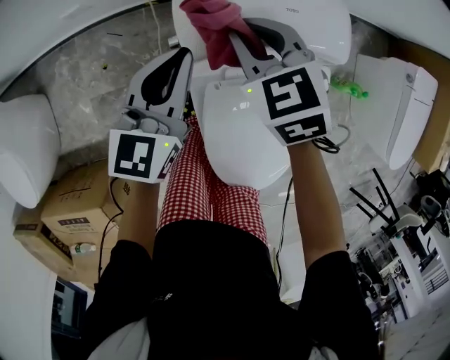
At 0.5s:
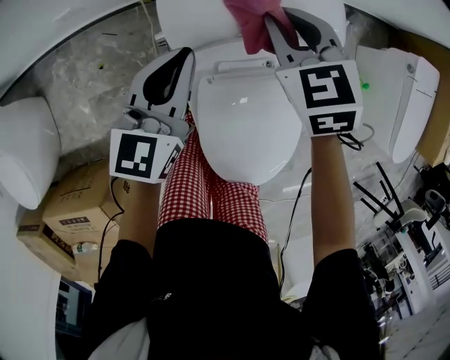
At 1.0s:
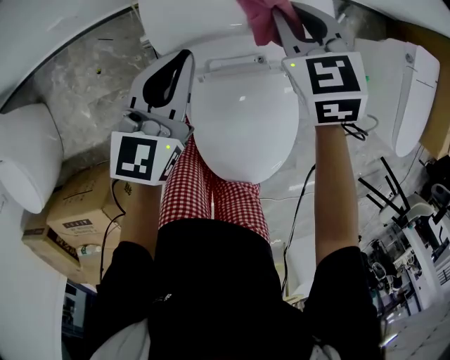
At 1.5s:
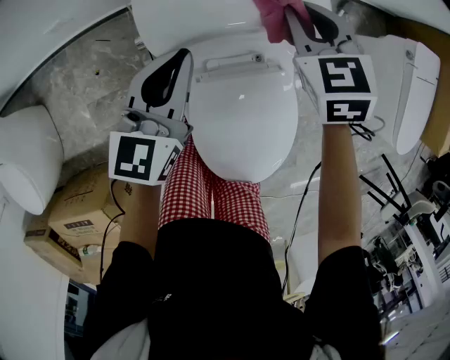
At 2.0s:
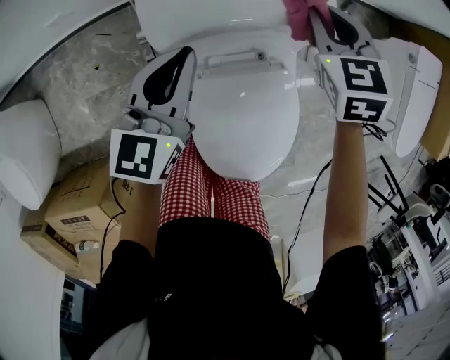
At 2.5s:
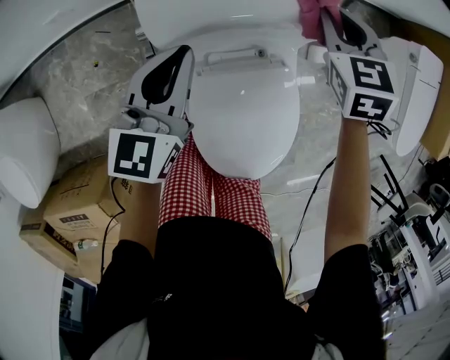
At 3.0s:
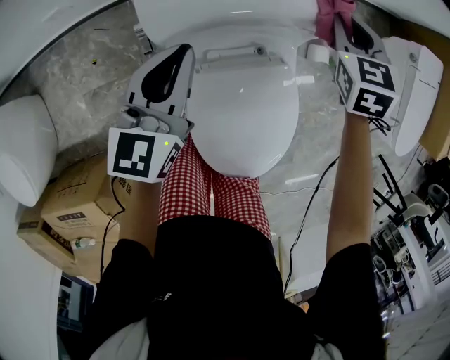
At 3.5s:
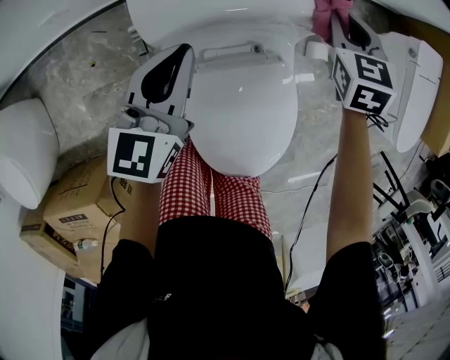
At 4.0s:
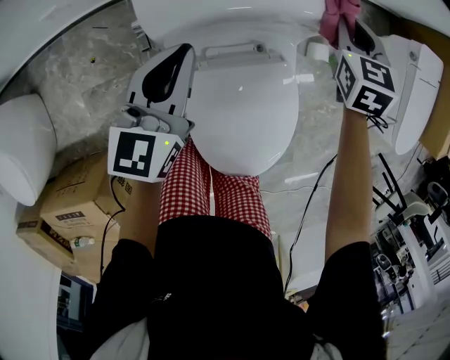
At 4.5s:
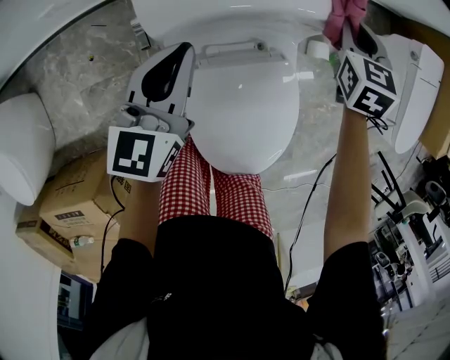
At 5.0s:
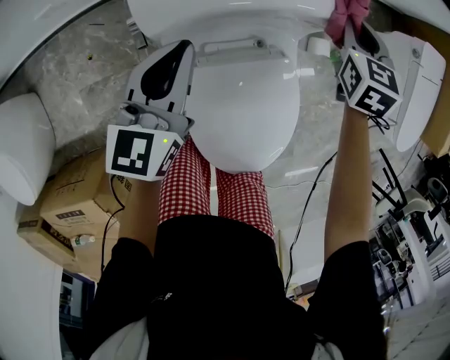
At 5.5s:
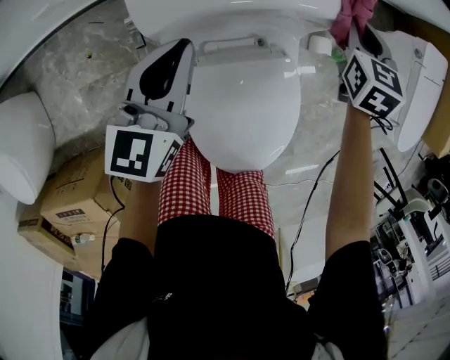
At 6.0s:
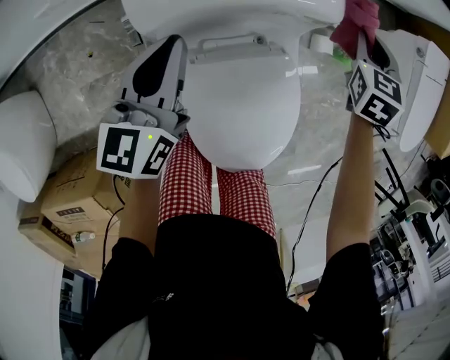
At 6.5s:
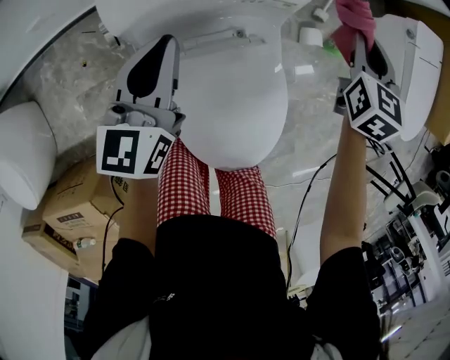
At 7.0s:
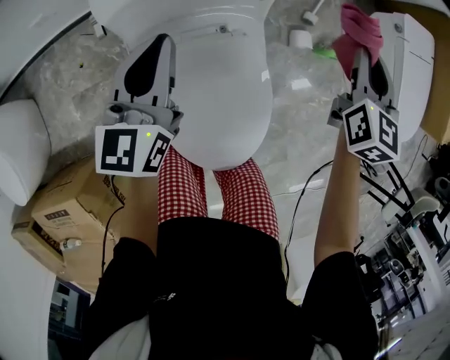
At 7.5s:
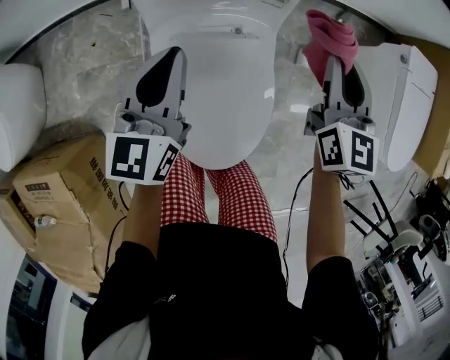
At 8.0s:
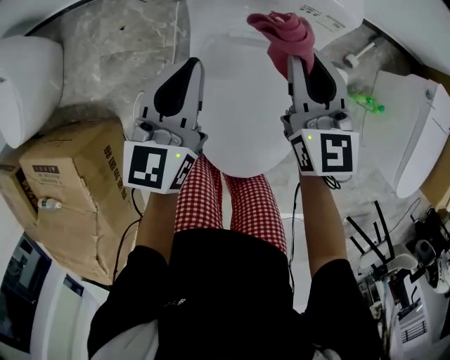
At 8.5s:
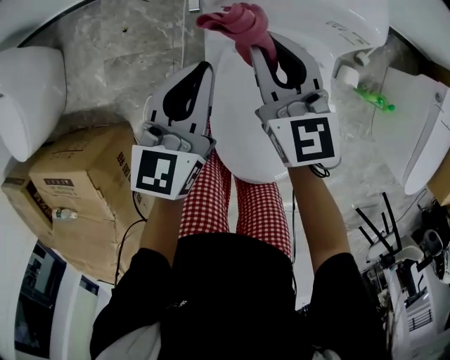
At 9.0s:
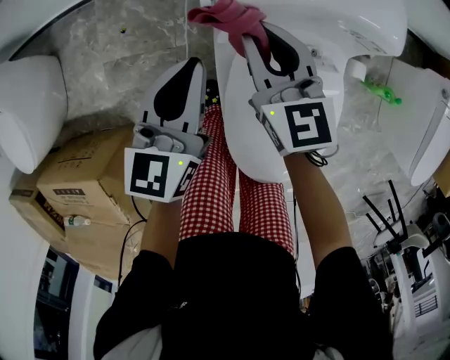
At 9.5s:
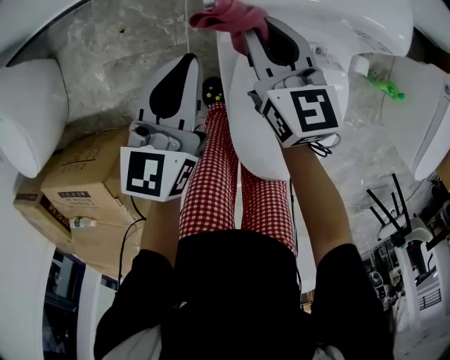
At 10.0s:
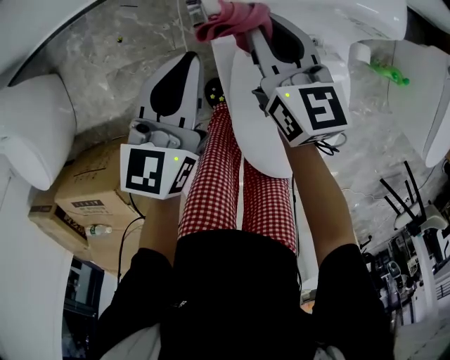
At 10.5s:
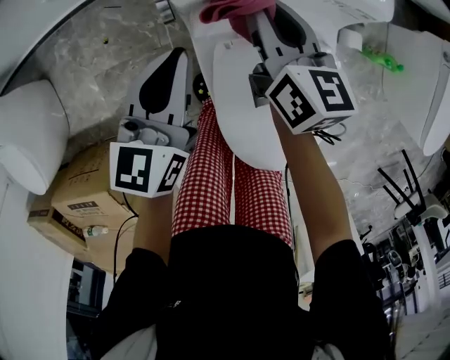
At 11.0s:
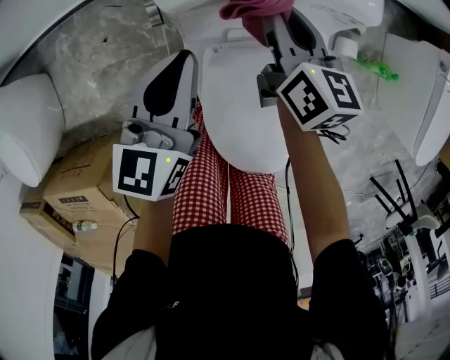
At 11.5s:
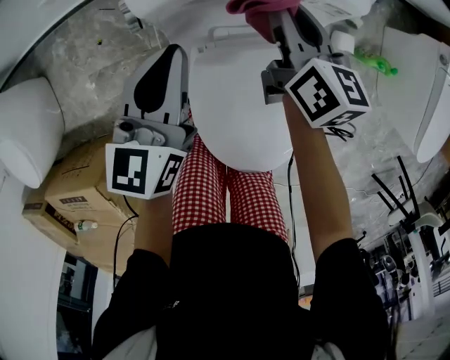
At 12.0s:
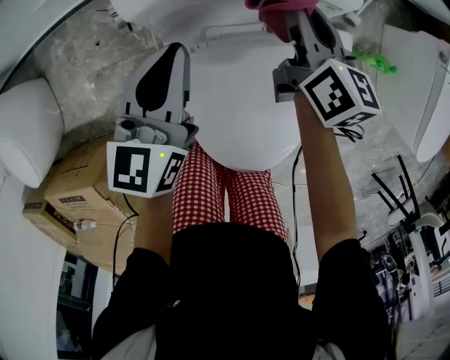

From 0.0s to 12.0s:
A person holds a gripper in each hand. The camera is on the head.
From 0.0s to 2.0s: The right gripper goes about 20 cm to the right. Meanwhile the left gripper goes roughly 5 cm to the right.
From 2.0s to 4.0s: The right gripper goes approximately 10 cm to the right.
From 4.0s to 6.0s: The right gripper is displaced to the right by roughly 10 cm.
From 6.0s to 8.0s: The right gripper shifts by approximately 25 cm, and changes its angle by some 50 degrees. Meanwhile the left gripper moves approximately 15 cm.
From 8.0s to 10.0s: The right gripper goes some 20 cm to the left, forward and downward, while the left gripper goes about 15 cm forward, to the left and downward.
From 10.0s to 12.0s: The right gripper heads to the right, covering about 20 cm, and changes its angle by roughly 20 degrees. Meanwhile the left gripper travels to the right by about 10 cm.

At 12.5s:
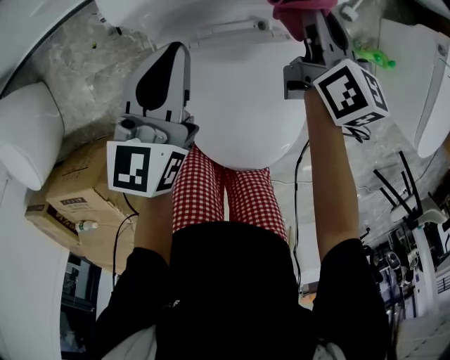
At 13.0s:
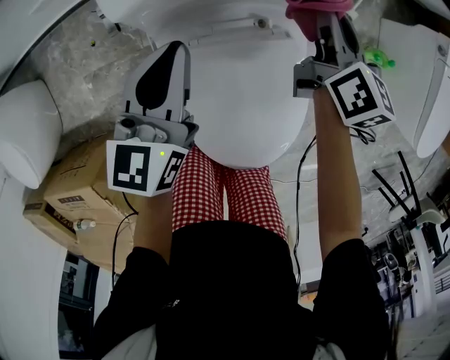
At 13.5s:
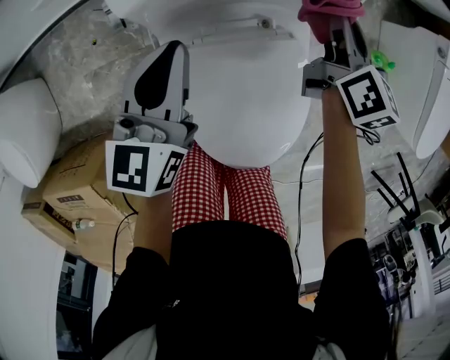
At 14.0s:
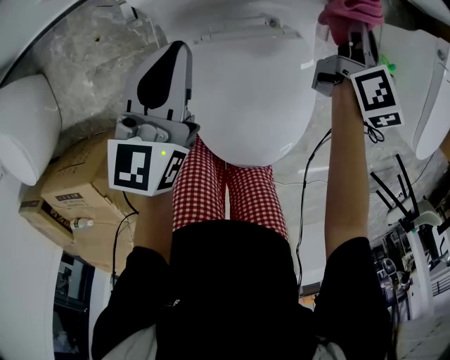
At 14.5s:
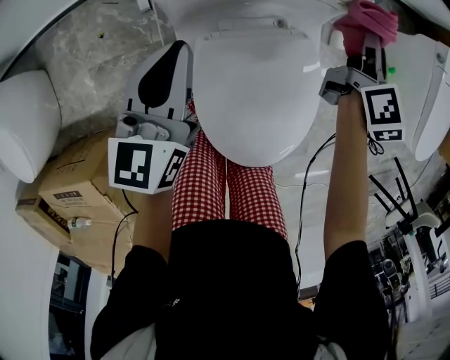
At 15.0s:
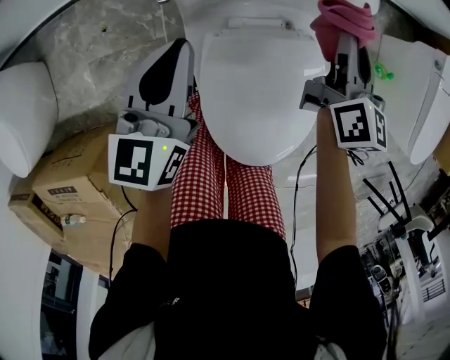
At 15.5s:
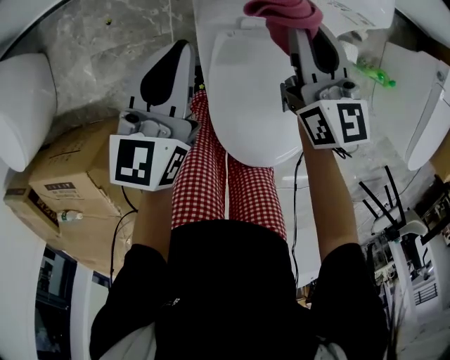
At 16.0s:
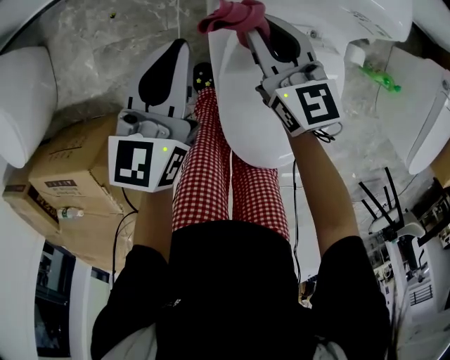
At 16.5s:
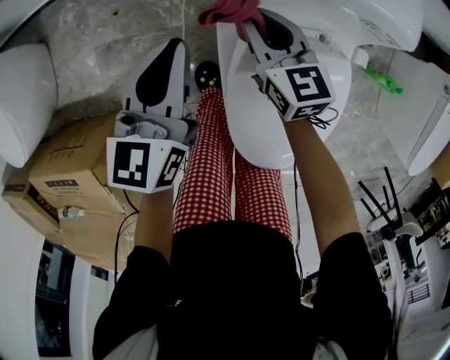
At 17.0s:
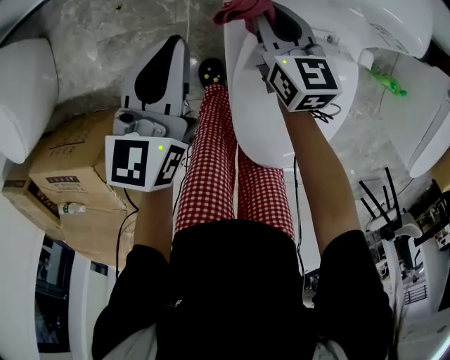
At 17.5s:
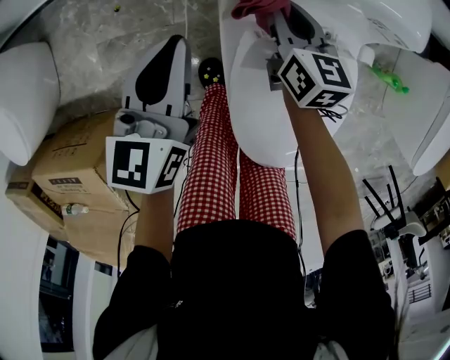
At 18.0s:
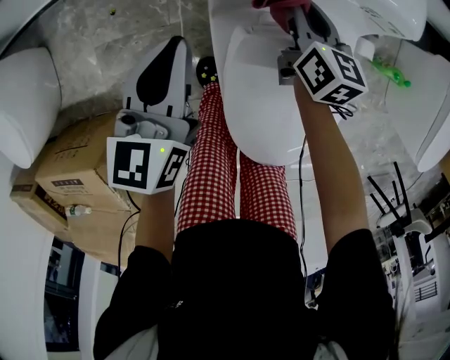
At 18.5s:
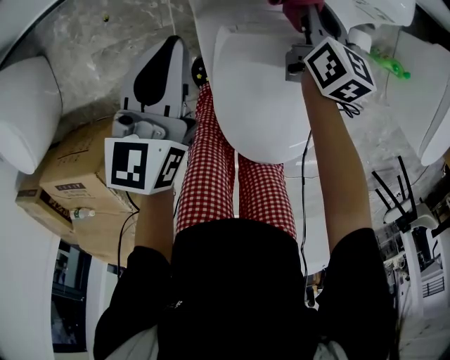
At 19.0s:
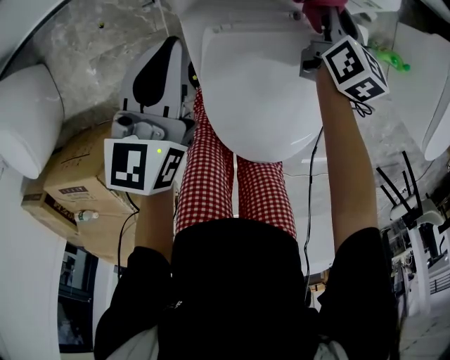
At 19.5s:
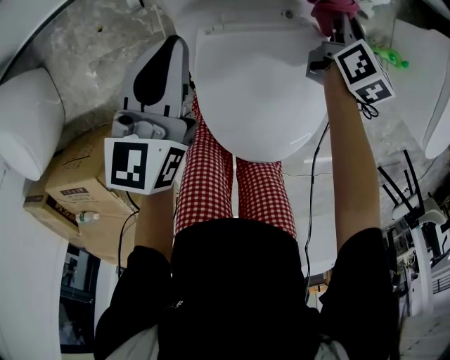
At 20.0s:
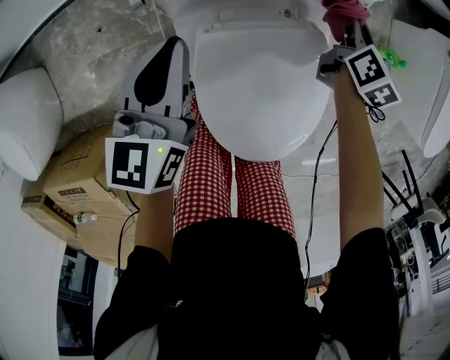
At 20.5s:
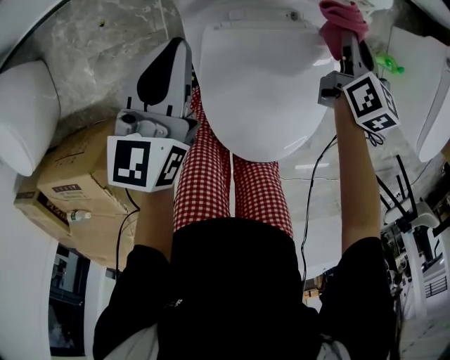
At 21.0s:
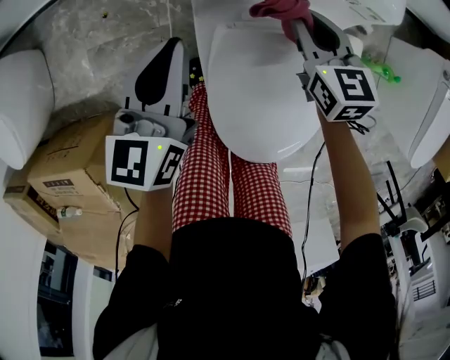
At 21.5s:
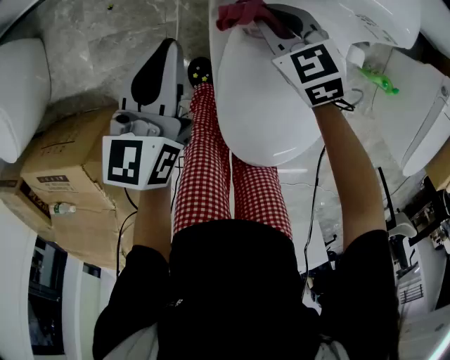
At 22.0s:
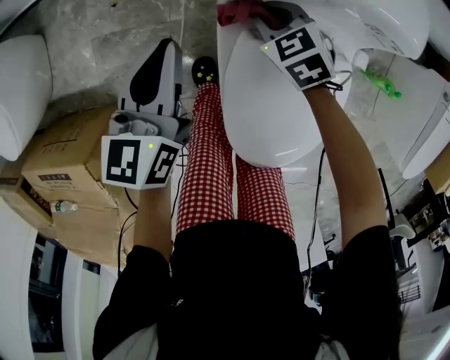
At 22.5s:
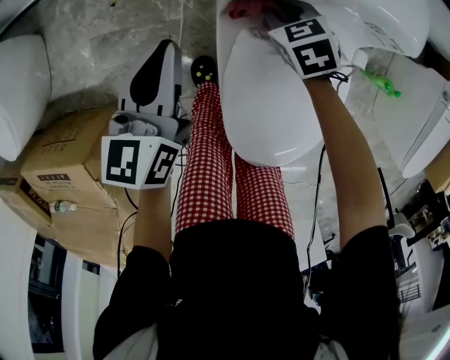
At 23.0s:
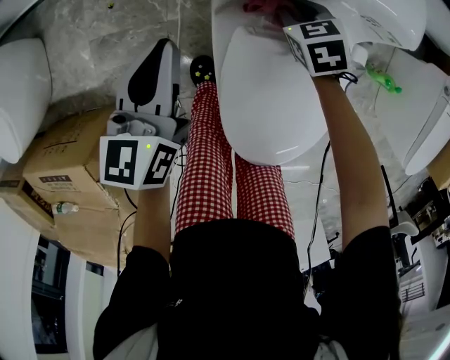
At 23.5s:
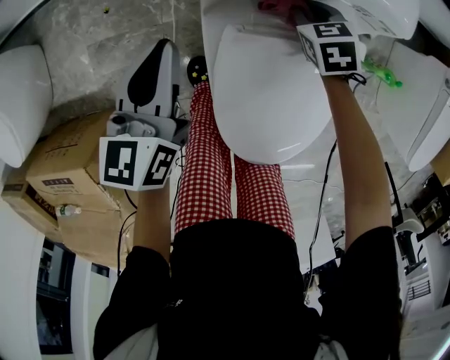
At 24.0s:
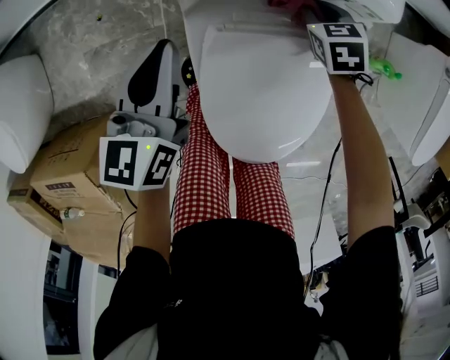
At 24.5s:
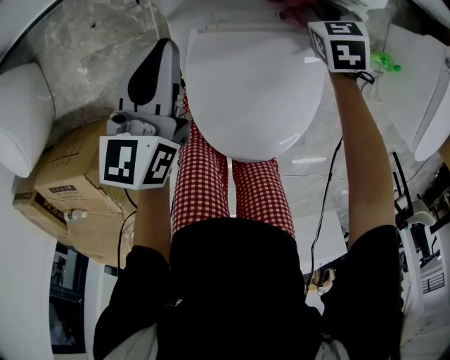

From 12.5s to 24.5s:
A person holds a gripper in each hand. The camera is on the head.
From 12.5s to 14.5s: The right gripper goes approximately 10 cm to the right, and turns by roughly 20 degrees, while the left gripper ends up approximately 5 cm from where it was.
From 14.5s to 16.5s: The right gripper ends up some 35 cm from where it was, and changes its angle by about 60 degrees; the left gripper shifts by roughly 10 cm.
From 16.5s to 18.5s: The right gripper heads to the right, covering roughly 20 cm, and rotates about 30 degrees; the left gripper shifts approximately 5 cm to the right.
From 18.5s to 20.5s: The right gripper moves to the right, about 15 cm.
From 20.5s to 22.5s: The right gripper shifts by some 25 cm, and turns by some 70 degrees. The left gripper changes place by about 10 cm.
From 22.5s to 24.5s: The right gripper goes approximately 20 cm to the right. Meanwhile the left gripper heads to the right, covering some 10 cm.

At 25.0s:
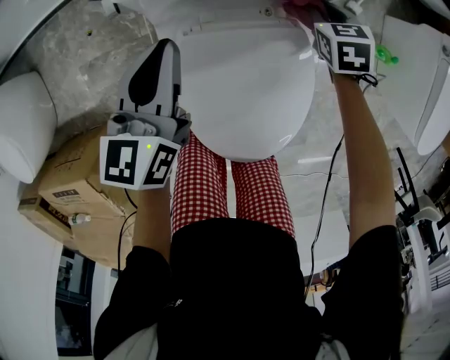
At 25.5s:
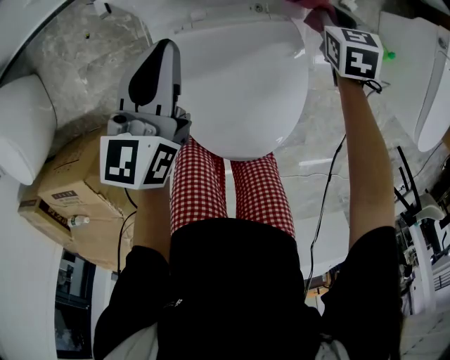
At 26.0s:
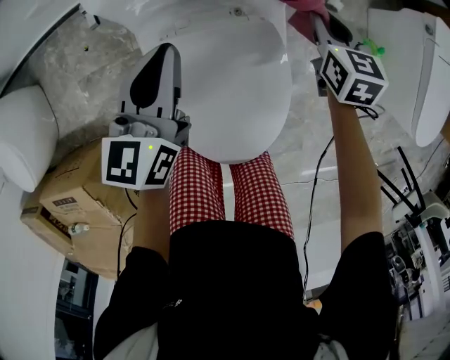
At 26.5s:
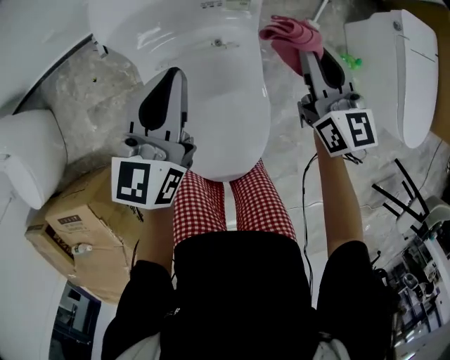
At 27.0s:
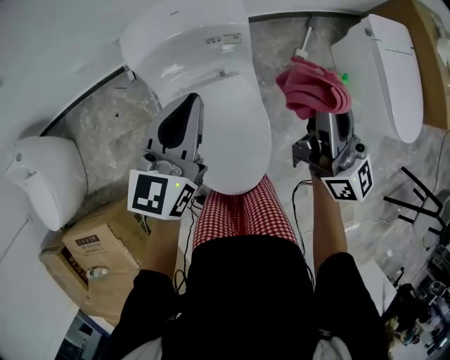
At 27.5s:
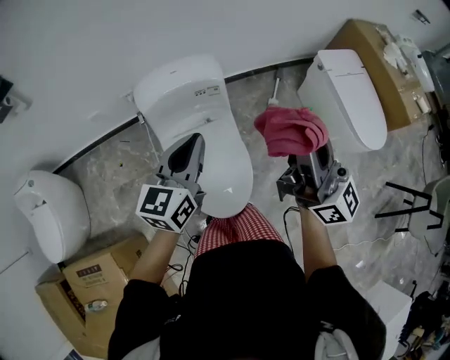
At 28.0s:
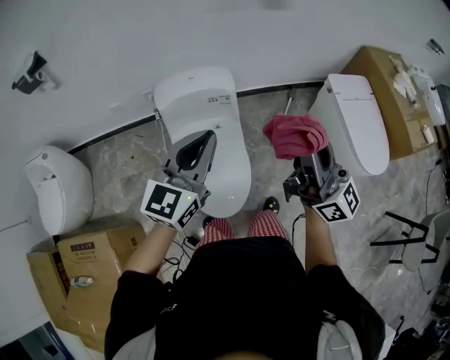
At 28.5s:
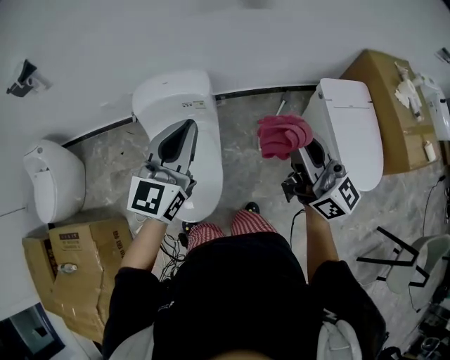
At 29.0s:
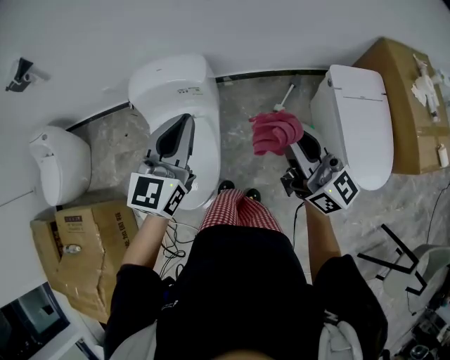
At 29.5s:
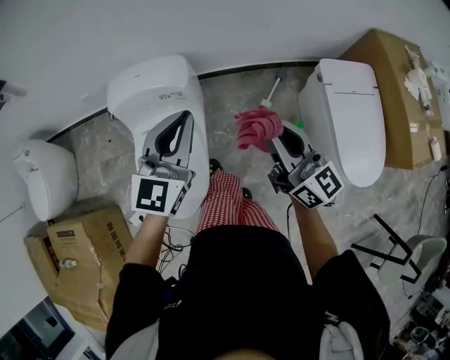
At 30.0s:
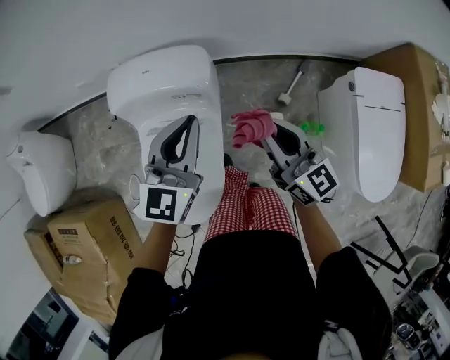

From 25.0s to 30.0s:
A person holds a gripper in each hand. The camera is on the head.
From 25.0s to 27.5s: The right gripper travels upward and backward by approximately 70 cm, and angles its fingers upward, by approximately 90 degrees. Meanwhile the left gripper goes roughly 35 cm upward, to the right and backward, and changes its angle by roughly 30 degrees.
From 27.5s to 30.0s: The right gripper goes roughly 35 cm forward, downward and to the right, and changes its angle by some 40 degrees. The left gripper goes approximately 25 cm forward and to the right, and changes its angle by approximately 20 degrees.
